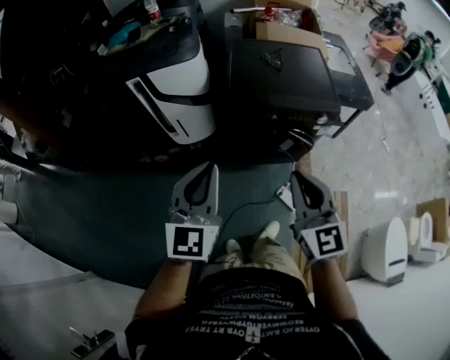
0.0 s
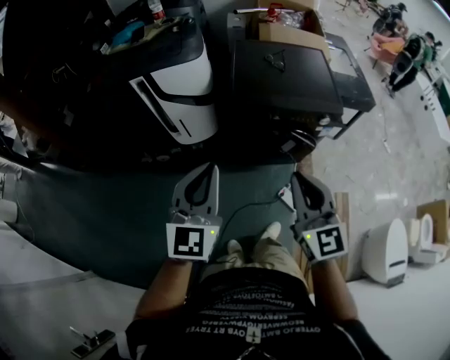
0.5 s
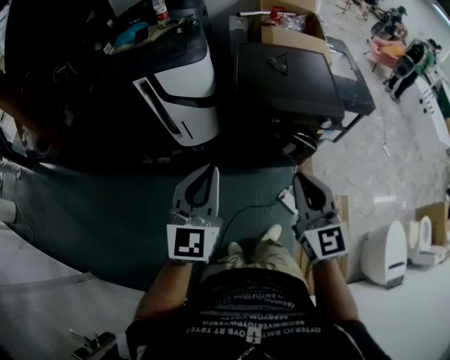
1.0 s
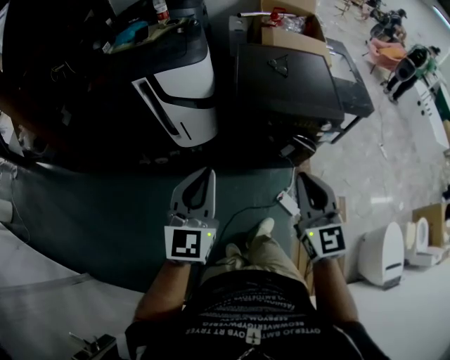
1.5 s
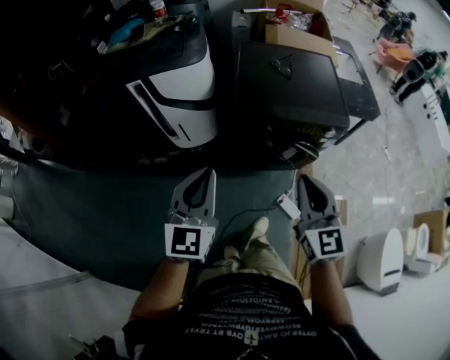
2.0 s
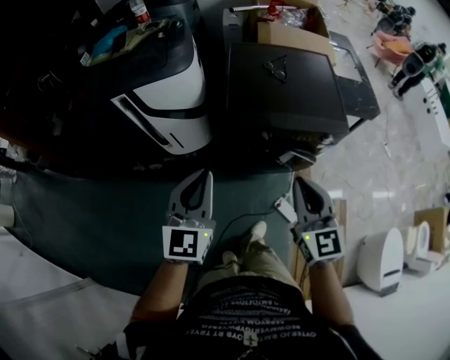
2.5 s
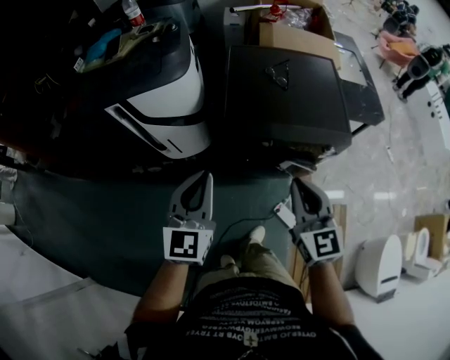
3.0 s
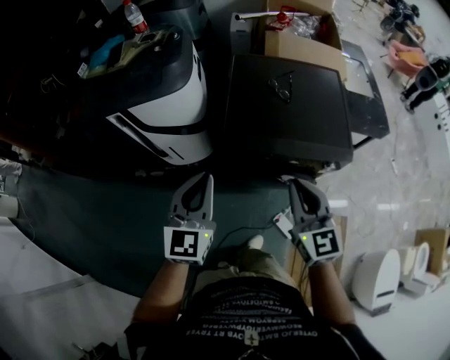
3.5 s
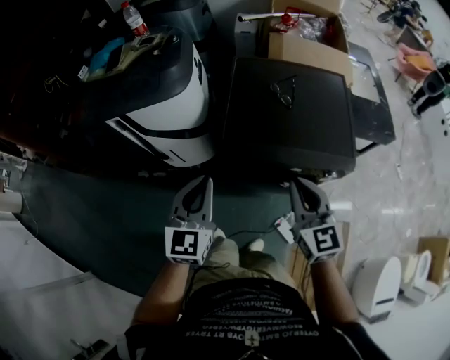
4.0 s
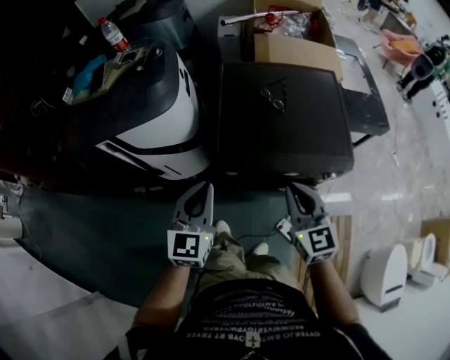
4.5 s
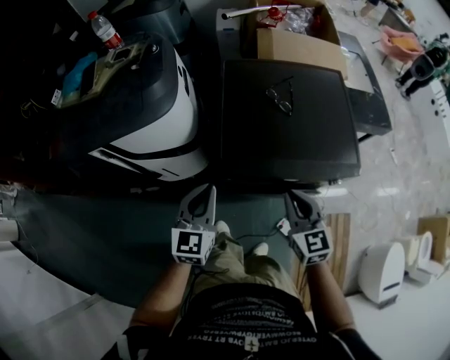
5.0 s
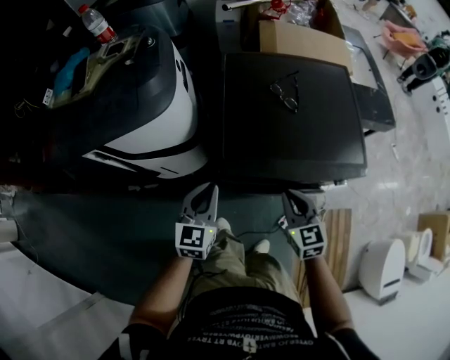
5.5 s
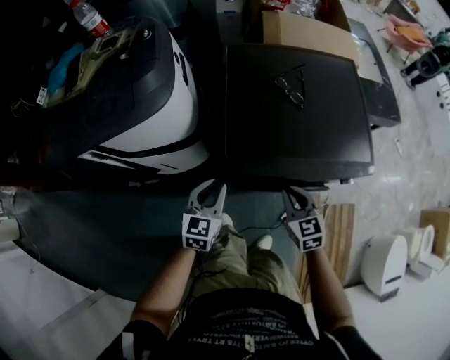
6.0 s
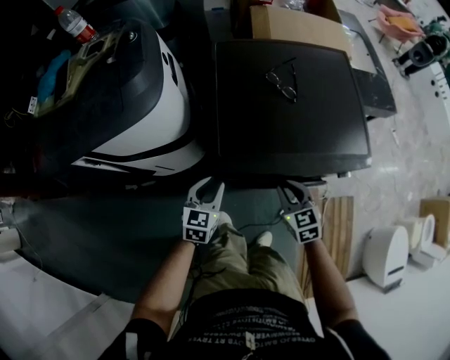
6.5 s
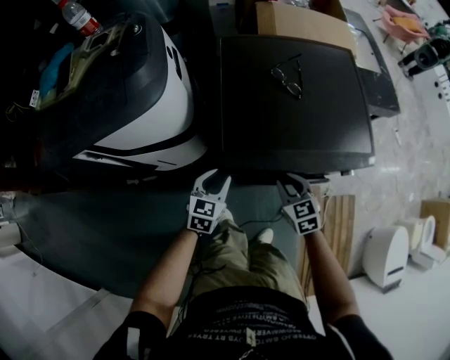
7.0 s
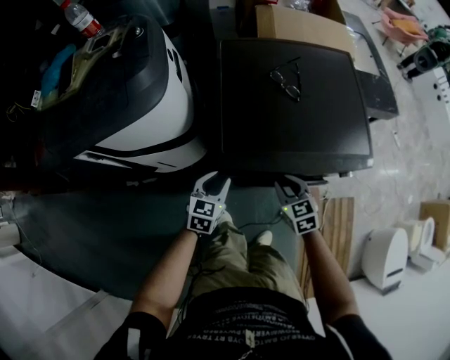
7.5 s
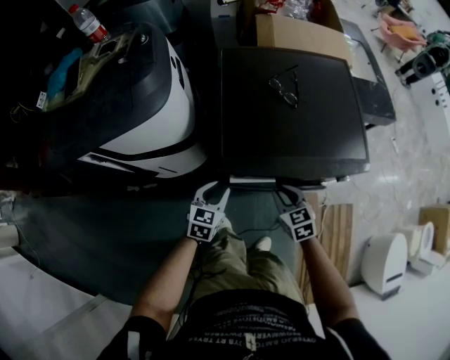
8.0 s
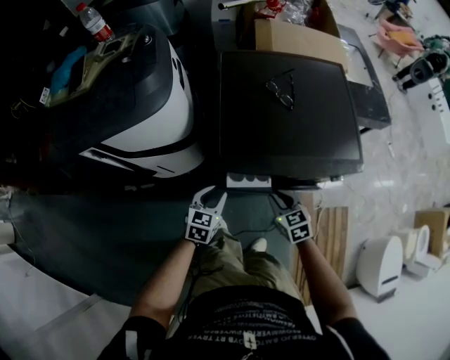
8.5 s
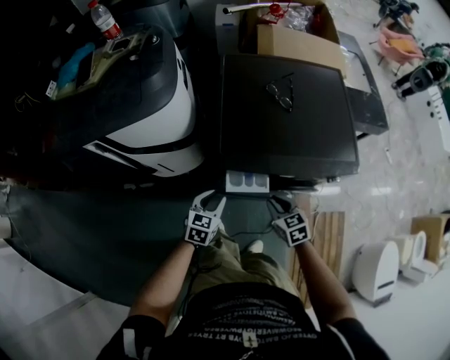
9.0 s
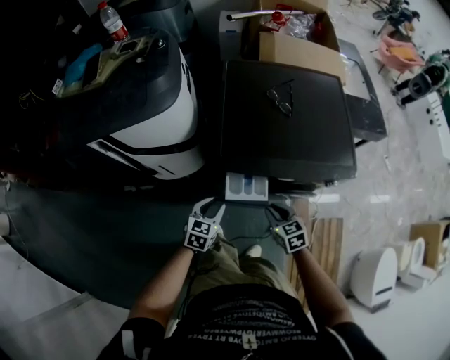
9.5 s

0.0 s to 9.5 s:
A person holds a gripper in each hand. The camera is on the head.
0.0 to 2.0 s: The two grippers go roughly 5 cm forward.
2.0 to 4.0 s: The left gripper moves forward and to the right, approximately 20 cm. Meanwhile the right gripper travels forward by roughly 25 cm.
4.0 to 5.5 s: The two grippers go roughly 20 cm downward and forward.
5.5 to 7.5 s: The grippers both shift downward by roughly 15 cm. The left gripper opens.
7.5 to 9.5 s: The two grippers go about 10 cm backward.

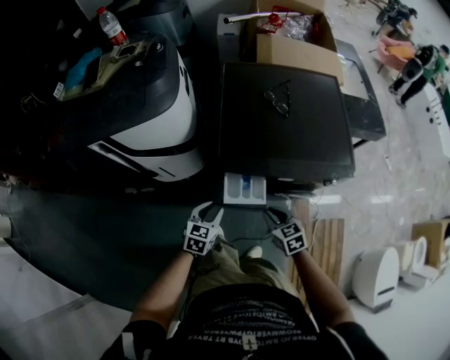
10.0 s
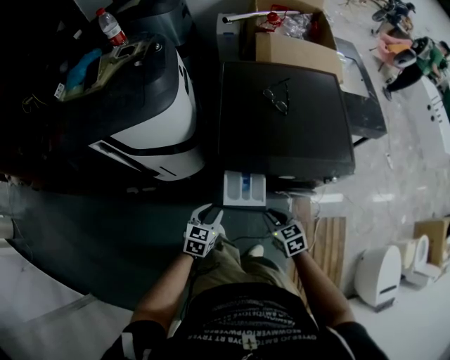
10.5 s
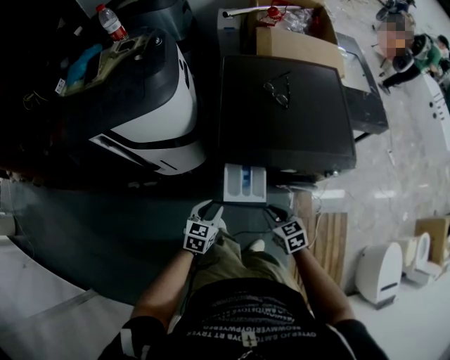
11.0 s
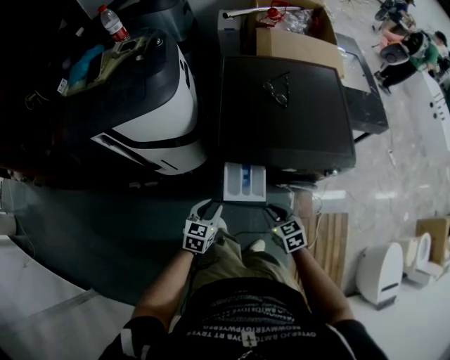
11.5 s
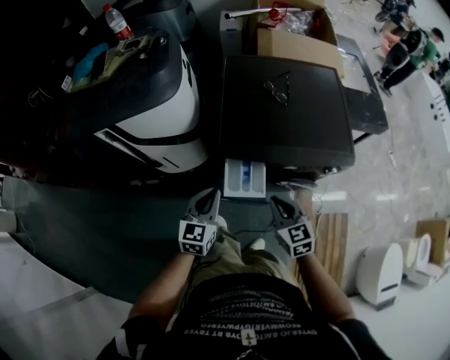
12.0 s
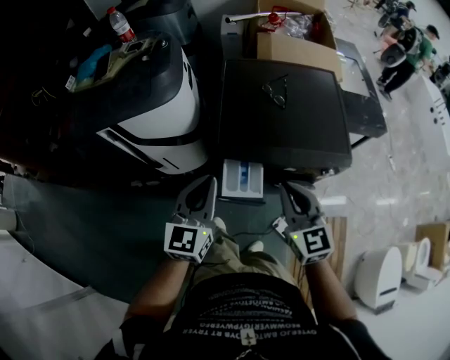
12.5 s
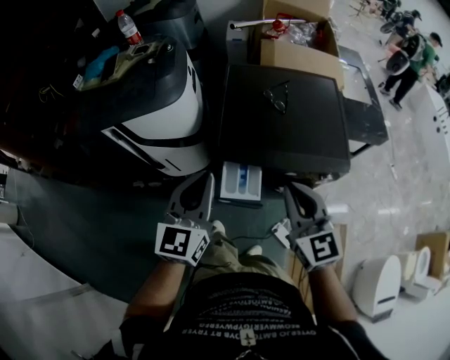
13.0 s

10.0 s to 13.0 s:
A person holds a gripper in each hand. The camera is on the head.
10.0 to 11.5 s: The grippers move only a little.
11.5 to 13.0 s: Both grippers travel together upward, approximately 35 cm. The left gripper points its fingers about 30 degrees further upward, and closes. The right gripper tilts its fingers approximately 30 degrees upward.

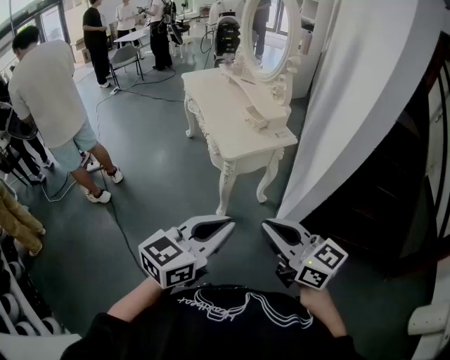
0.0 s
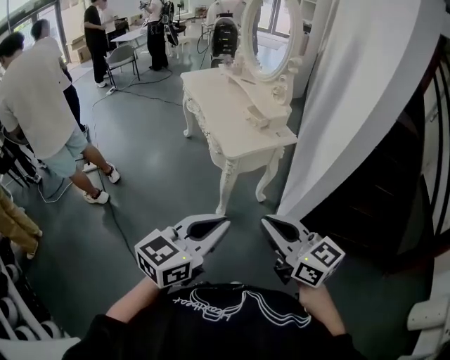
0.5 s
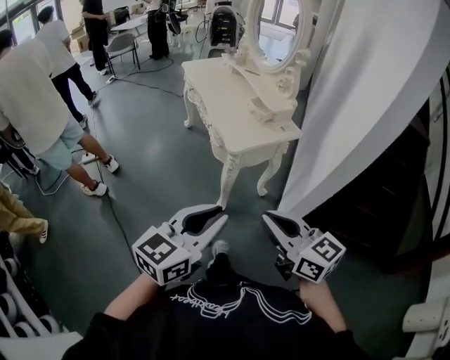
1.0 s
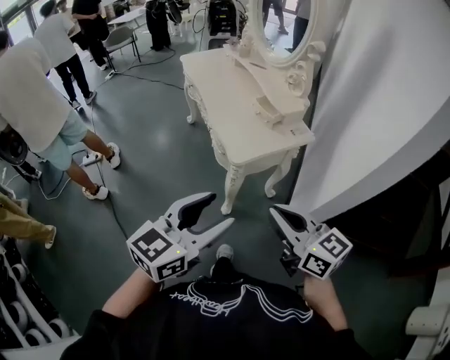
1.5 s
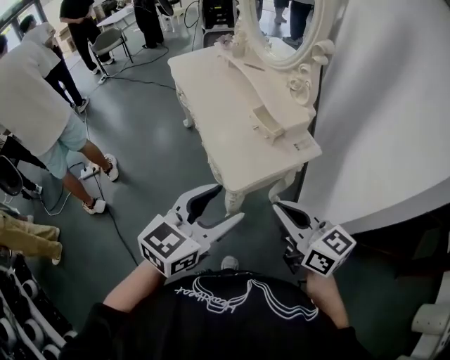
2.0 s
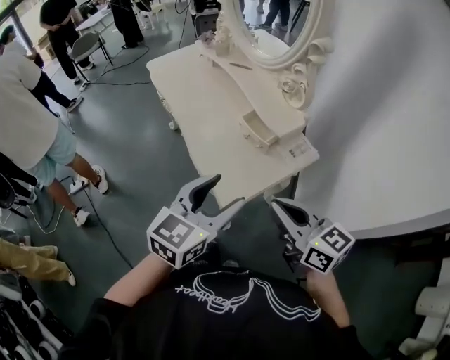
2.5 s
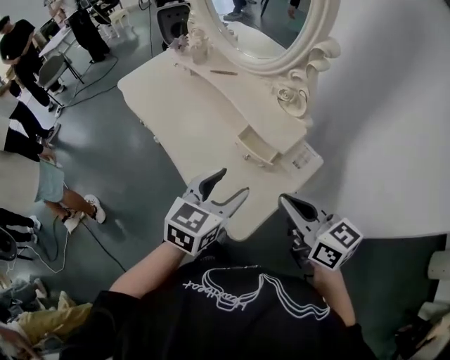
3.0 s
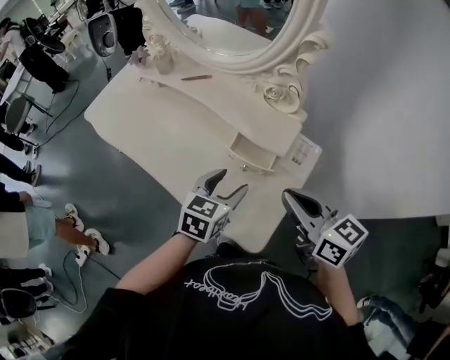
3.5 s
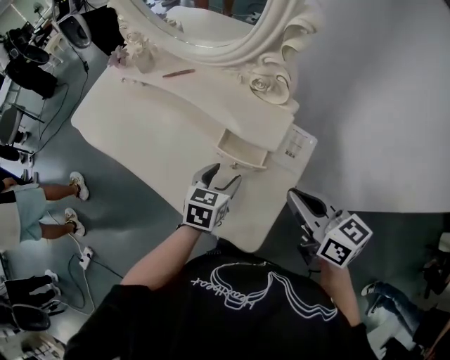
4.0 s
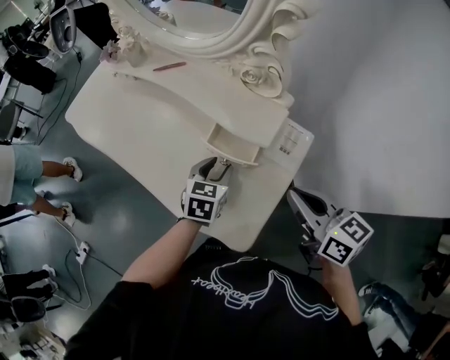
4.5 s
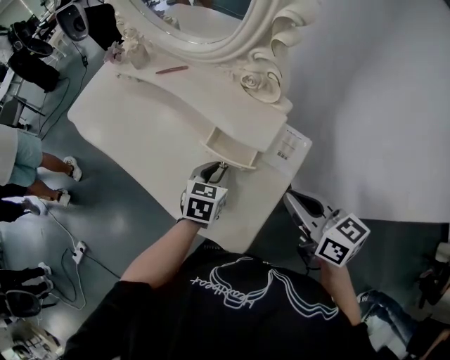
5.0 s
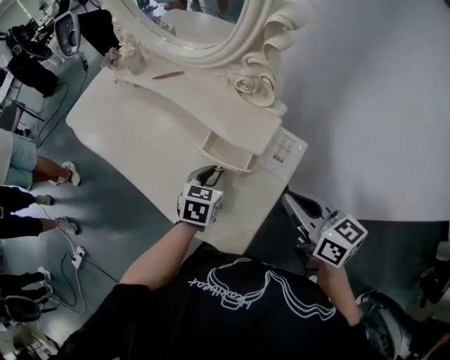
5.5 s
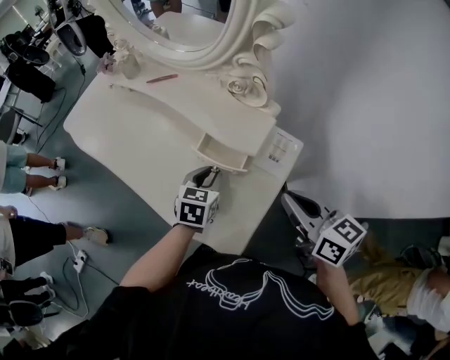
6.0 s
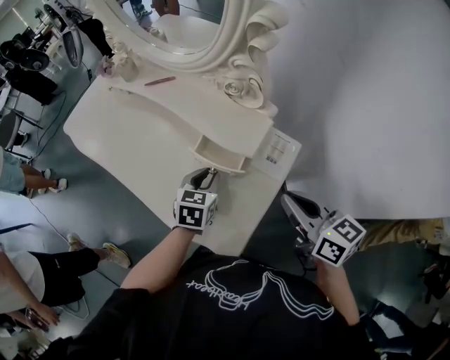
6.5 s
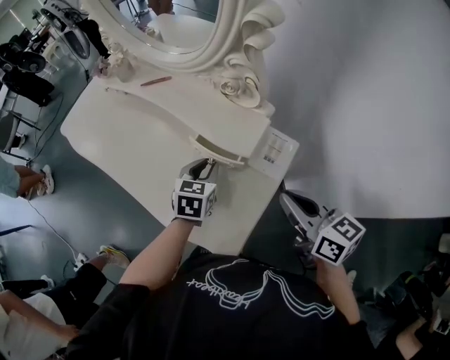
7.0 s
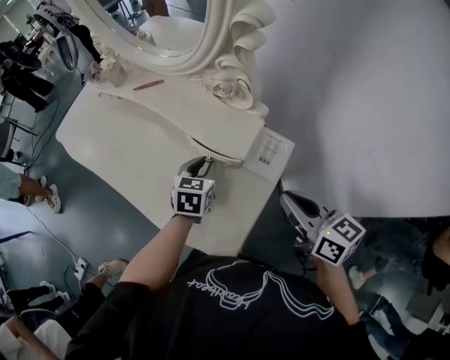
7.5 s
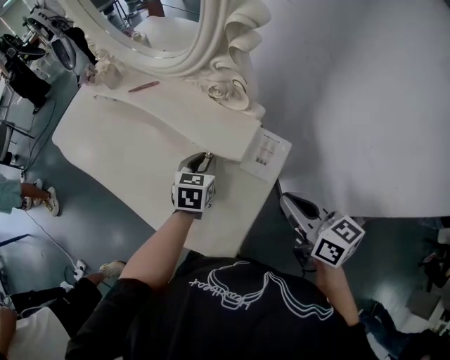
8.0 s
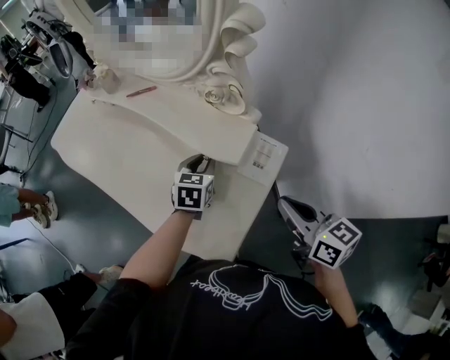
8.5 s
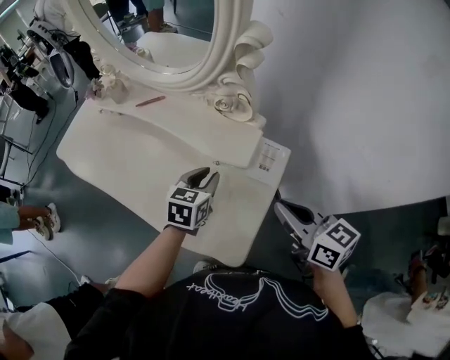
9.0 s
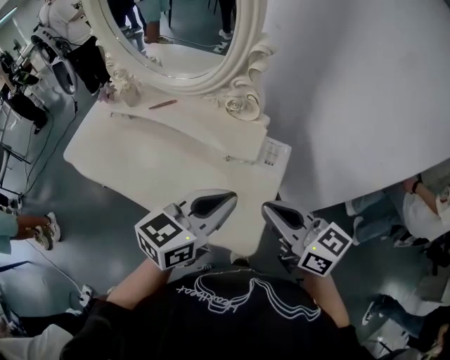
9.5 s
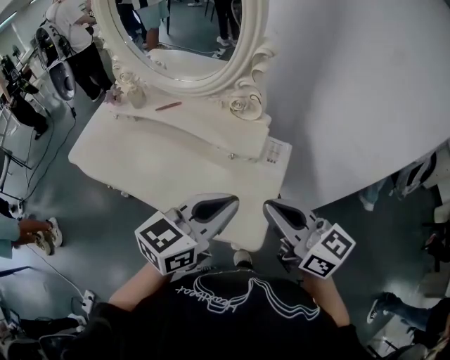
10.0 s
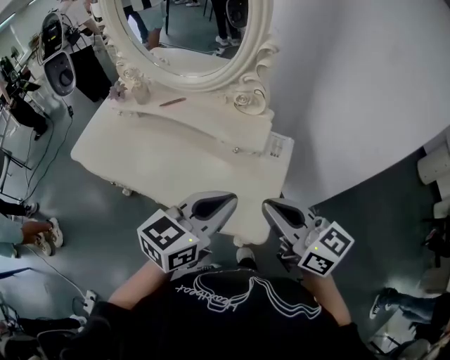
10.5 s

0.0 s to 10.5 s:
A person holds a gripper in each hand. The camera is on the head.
0.0 to 2.0 s: Both grippers travel together forward, roughly 30 cm. The left gripper opens its fingers.
2.0 to 4.0 s: The left gripper shifts by roughly 40 cm, and swivels about 30 degrees, while the right gripper shifts by roughly 25 cm, and swivels about 40 degrees.
4.0 to 6.5 s: The right gripper heads to the right, covering roughly 5 cm. The left gripper closes its fingers.
6.5 to 8.5 s: The left gripper goes about 5 cm forward.
8.5 to 10.5 s: The left gripper goes about 35 cm upward and backward, and rotates roughly 50 degrees. The right gripper shifts roughly 25 cm to the left, upward and backward.

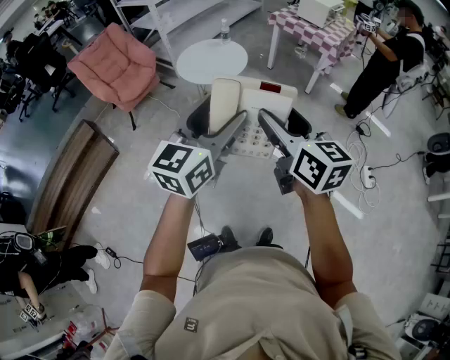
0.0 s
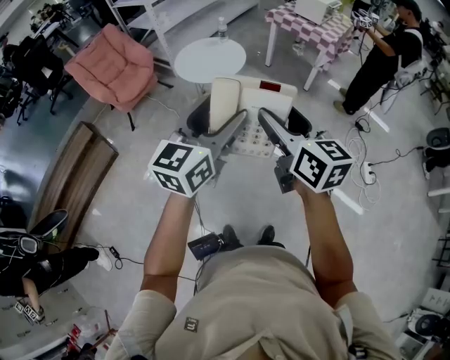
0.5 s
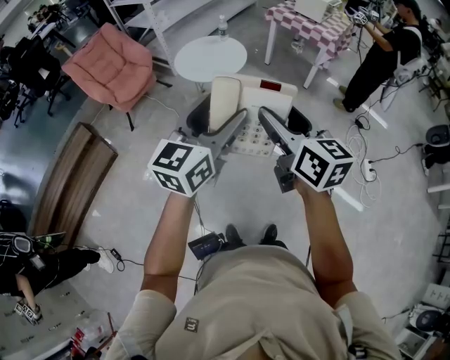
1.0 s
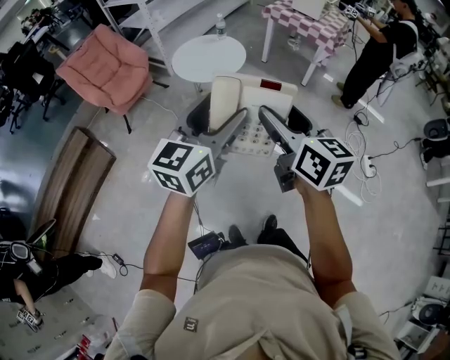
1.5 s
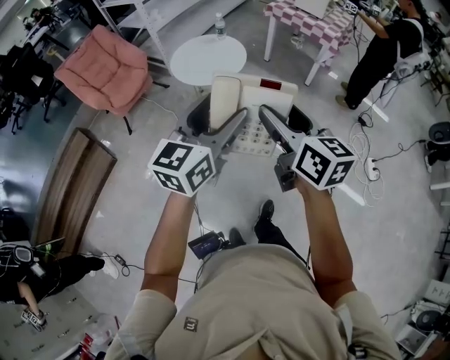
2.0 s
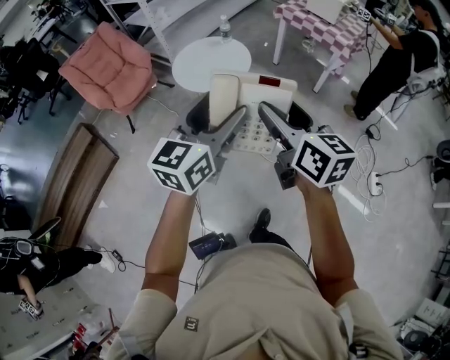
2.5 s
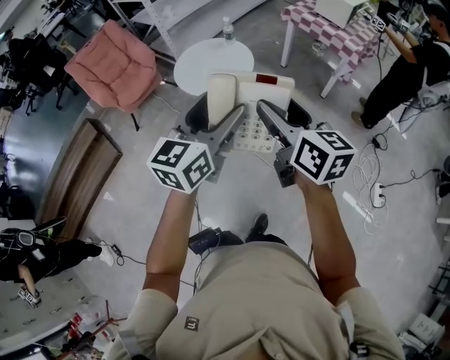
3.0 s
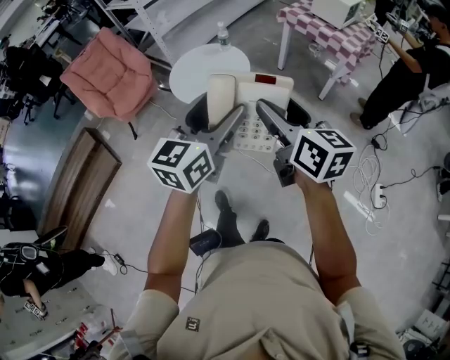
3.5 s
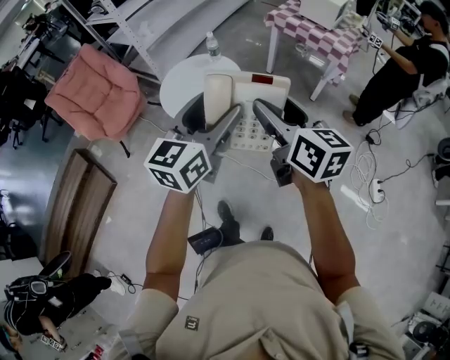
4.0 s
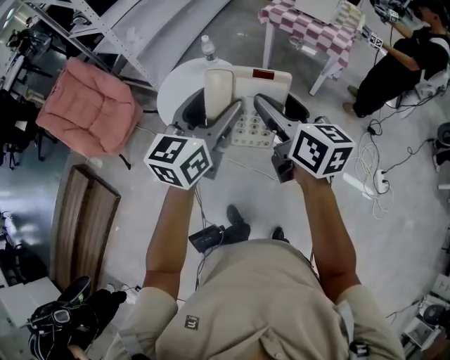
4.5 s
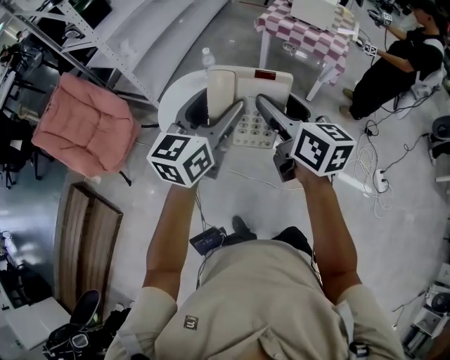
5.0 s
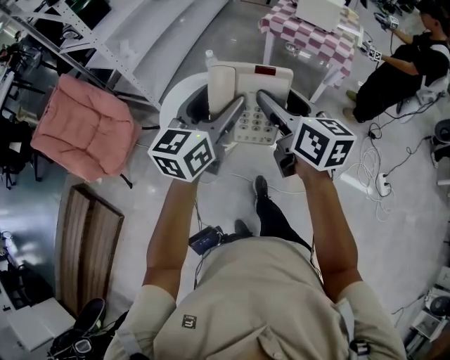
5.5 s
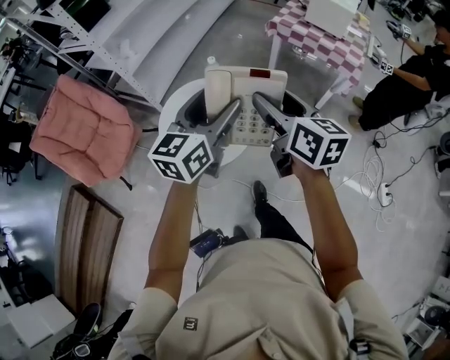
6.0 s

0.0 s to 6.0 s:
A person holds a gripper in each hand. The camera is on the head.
0.0 to 2.0 s: The two grippers go roughly 10 cm forward.
2.0 to 4.0 s: The two grippers go roughly 30 cm forward.
4.0 to 6.0 s: Both grippers travel together forward, some 30 cm.
